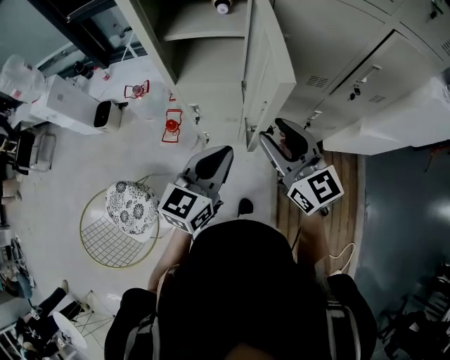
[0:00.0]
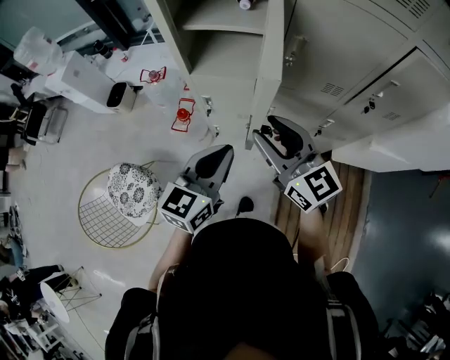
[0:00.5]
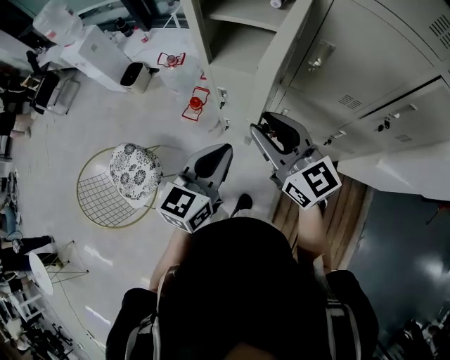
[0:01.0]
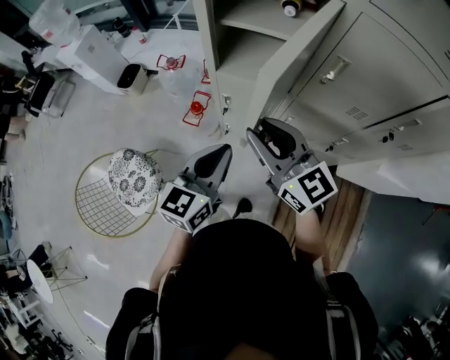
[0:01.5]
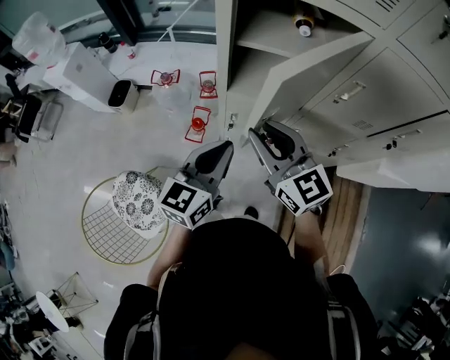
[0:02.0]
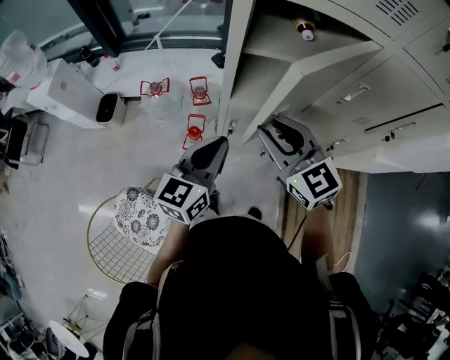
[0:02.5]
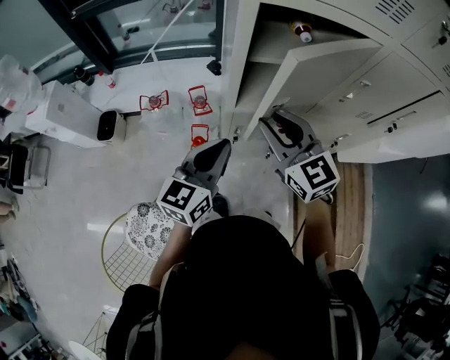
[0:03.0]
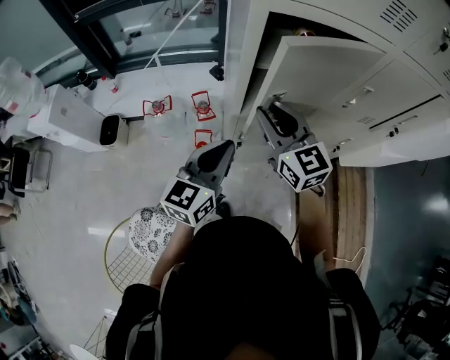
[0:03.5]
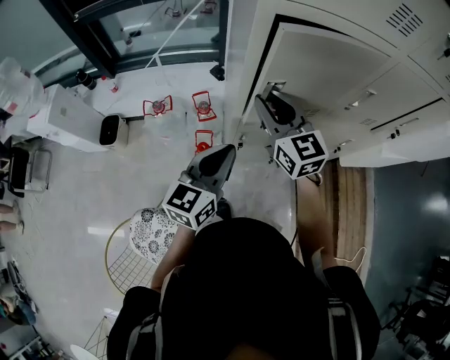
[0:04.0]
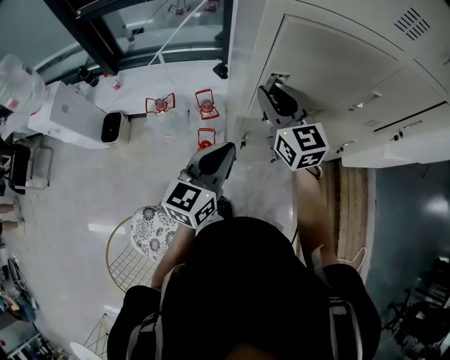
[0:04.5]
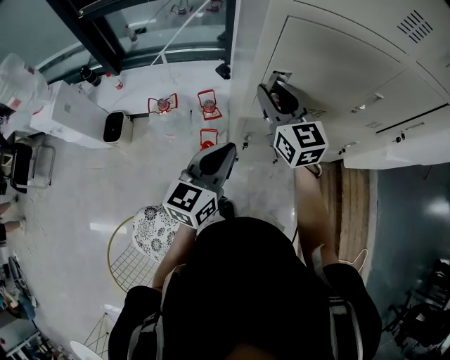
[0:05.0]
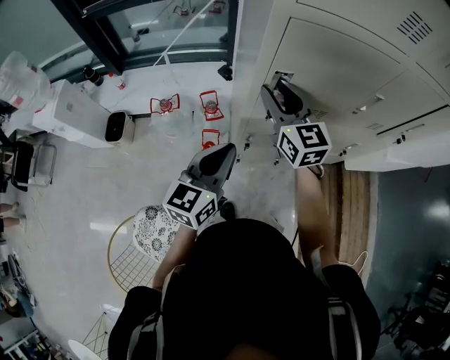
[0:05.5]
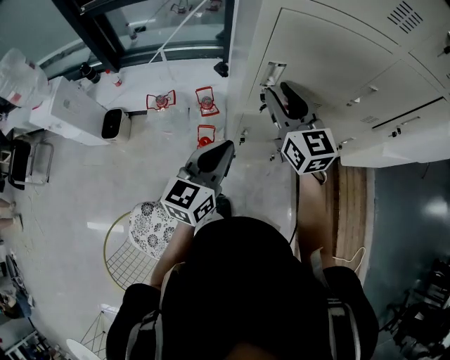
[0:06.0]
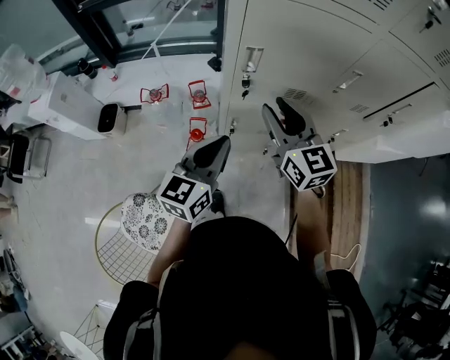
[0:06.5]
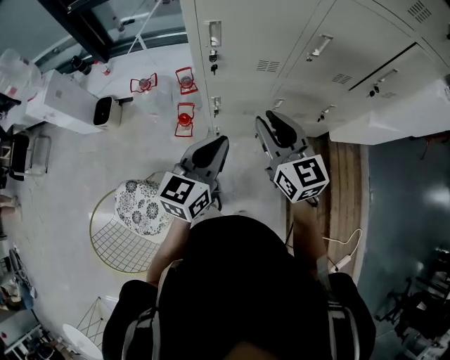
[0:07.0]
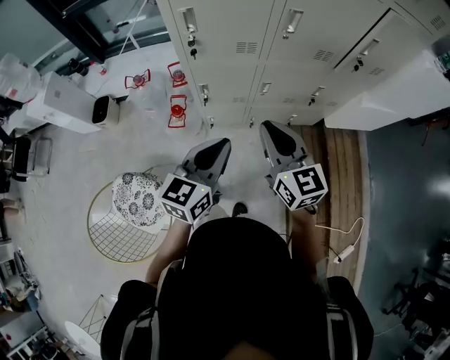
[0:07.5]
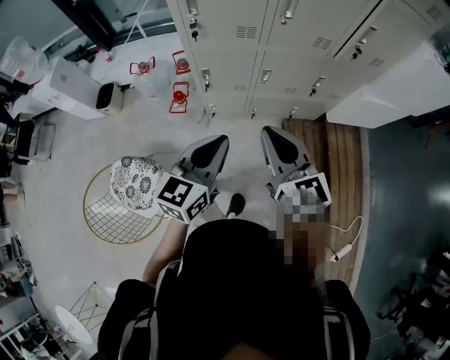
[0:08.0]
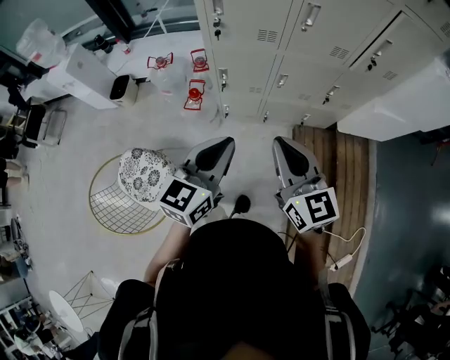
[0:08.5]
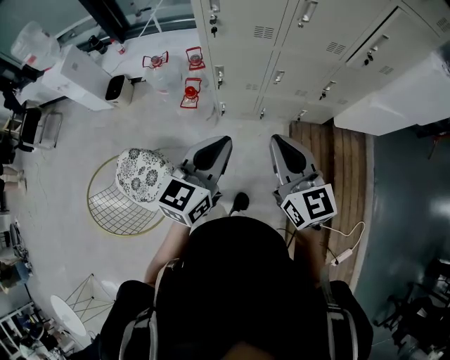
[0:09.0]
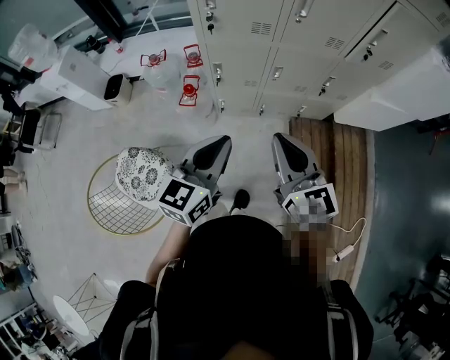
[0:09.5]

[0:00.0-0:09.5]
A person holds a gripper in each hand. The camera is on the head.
0:00.0 to 0:02.0: The grippers both shift to the left and forward by roughly 20 cm.
0:02.0 to 0:04.0: The left gripper shifts approximately 10 cm to the left and forward; the right gripper goes some 15 cm forward and to the left, and rotates some 20 degrees.
0:04.0 to 0:05.5: The grippers stay close to where they were, moving slightly.
0:05.5 to 0:07.5: The right gripper shifts some 35 cm backward and to the right, and closes. Meanwhile the left gripper travels to the right and backward by about 30 cm.
0:07.5 to 0:09.5: Both grippers travel together backward, some 10 cm.

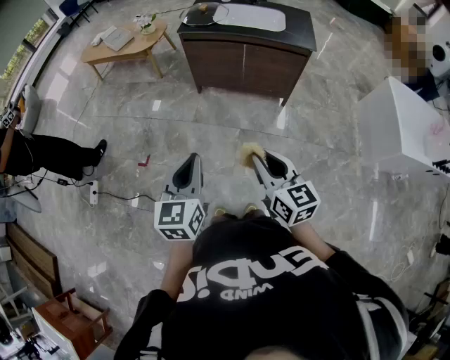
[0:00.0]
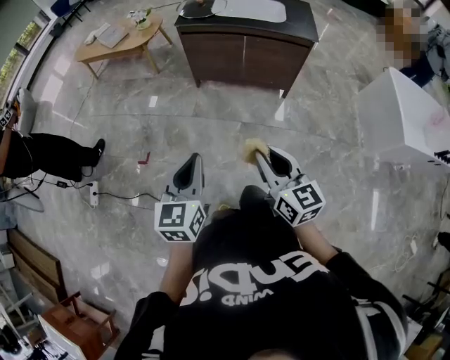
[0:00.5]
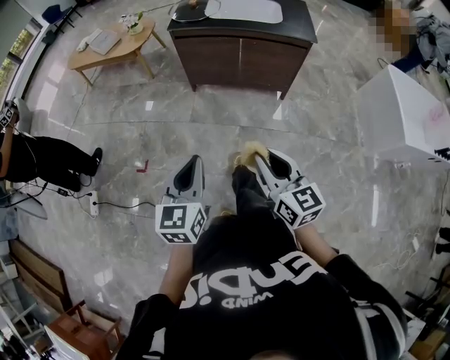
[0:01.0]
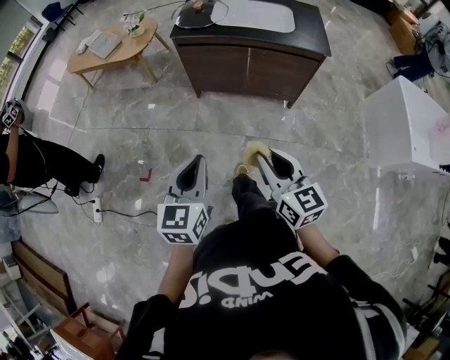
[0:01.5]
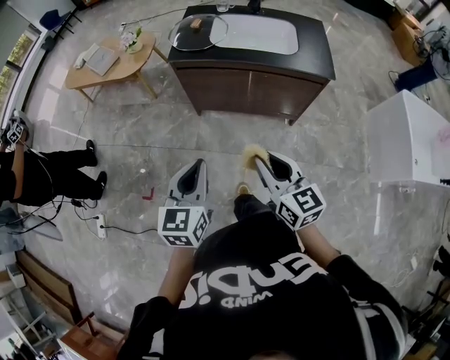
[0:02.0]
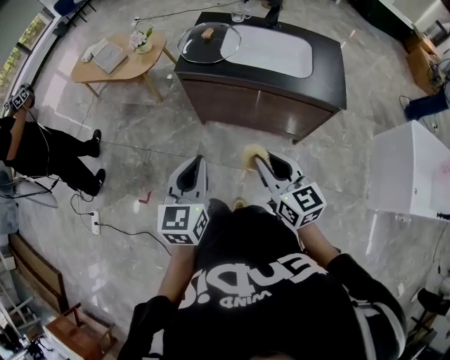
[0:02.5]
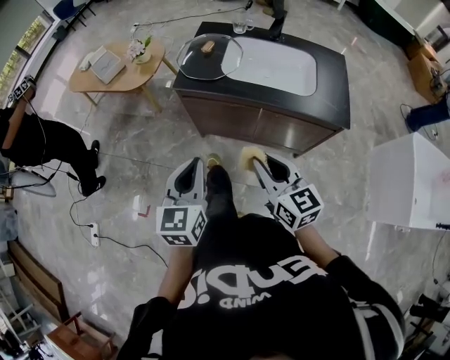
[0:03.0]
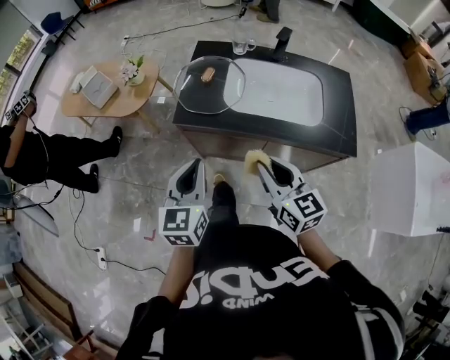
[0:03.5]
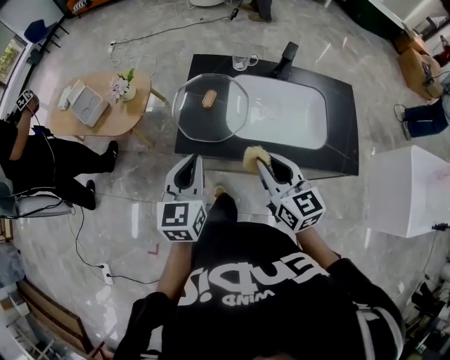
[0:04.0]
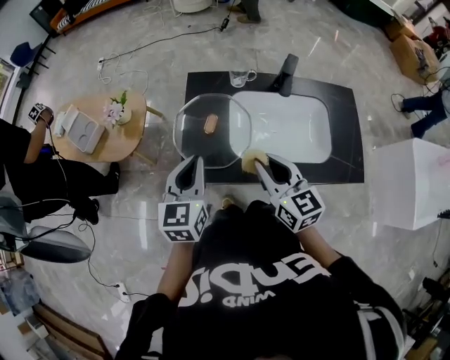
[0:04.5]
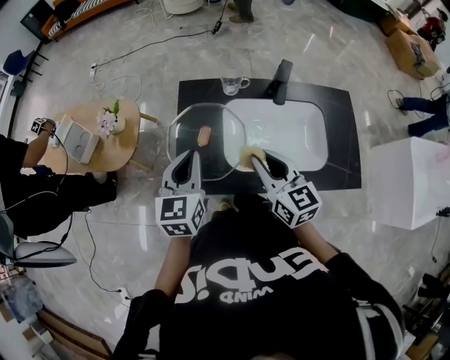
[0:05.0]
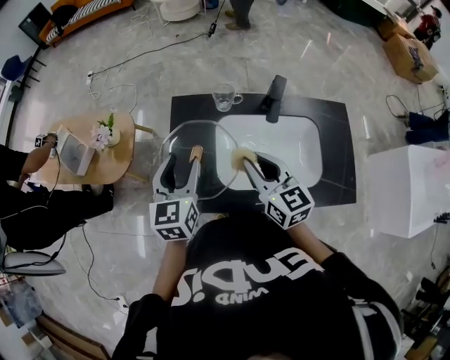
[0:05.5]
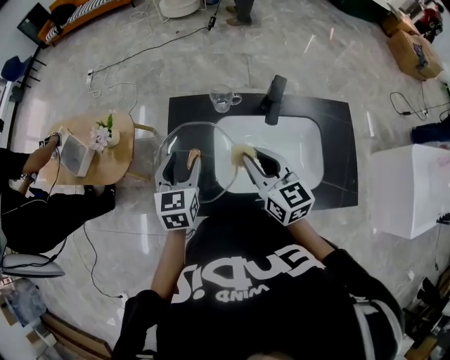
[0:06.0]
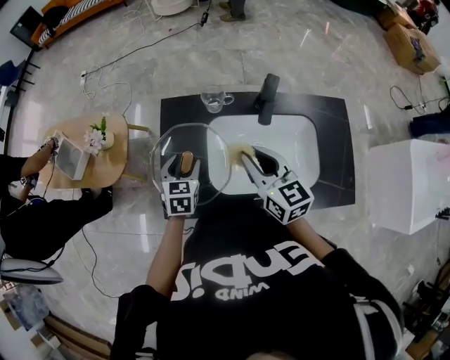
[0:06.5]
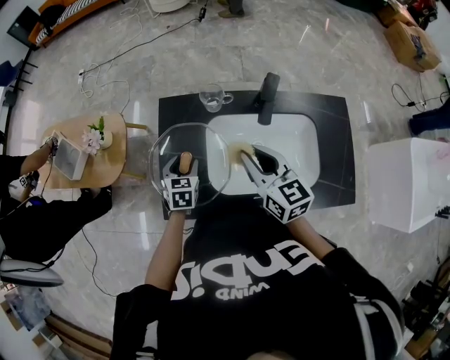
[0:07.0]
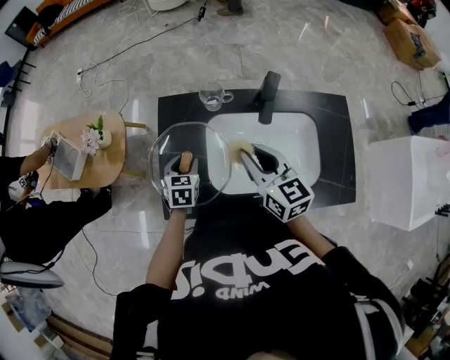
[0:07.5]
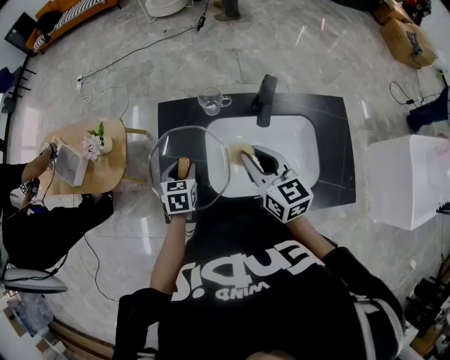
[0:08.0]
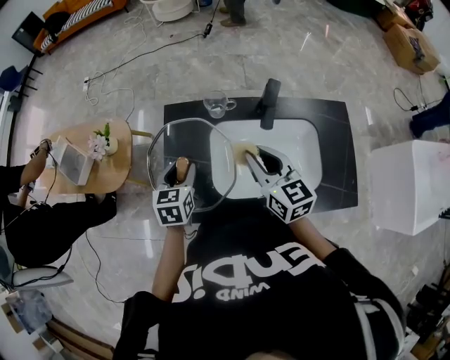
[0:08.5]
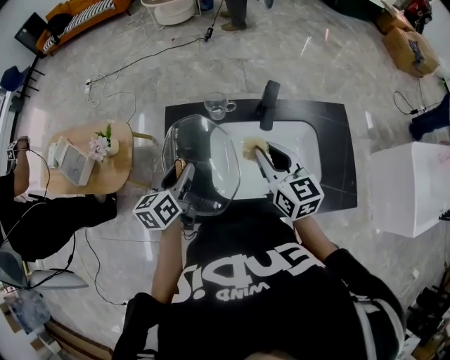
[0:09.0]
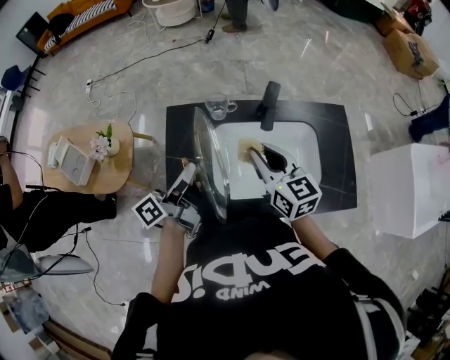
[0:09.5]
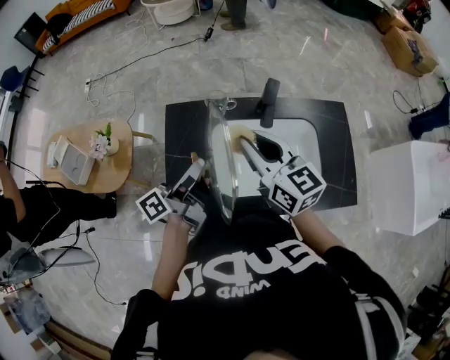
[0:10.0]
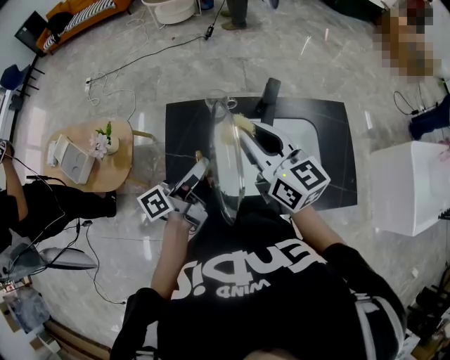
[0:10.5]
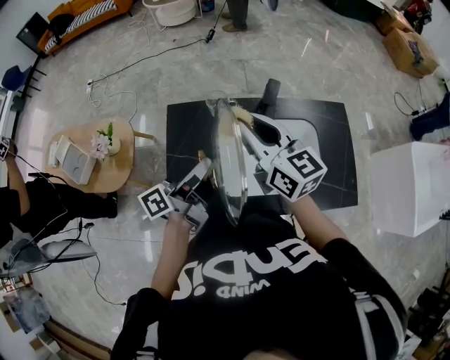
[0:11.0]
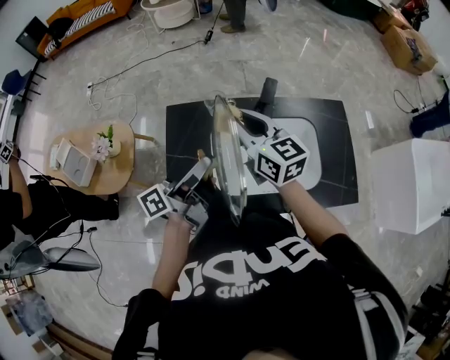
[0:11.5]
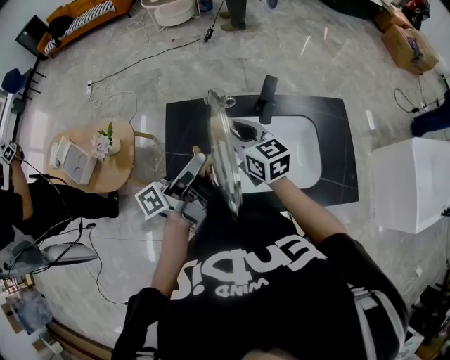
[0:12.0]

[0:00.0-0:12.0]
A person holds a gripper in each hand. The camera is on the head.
0:00.0 to 0:02.0: The grippers both shift forward by roughly 30 cm.
0:02.0 to 0:04.0: The two grippers travel together, forward, approximately 50 cm.
0:04.0 to 0:06.0: Both grippers travel together forward, some 25 cm. The left gripper opens its fingers.
0:06.0 to 0:08.0: The left gripper shifts roughly 15 cm downward.
0:08.0 to 0:10.0: The left gripper shifts about 20 cm upward, and tilts its fingers about 60 degrees upward; the right gripper travels upward by roughly 10 cm.
0:10.0 to 0:12.0: The right gripper shifts roughly 5 cm downward.

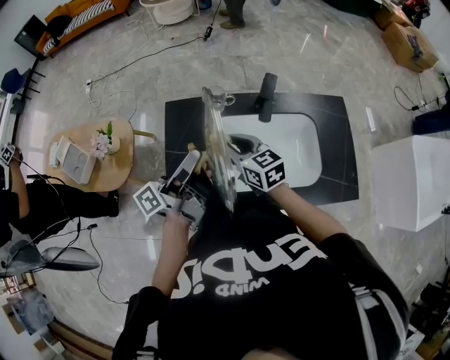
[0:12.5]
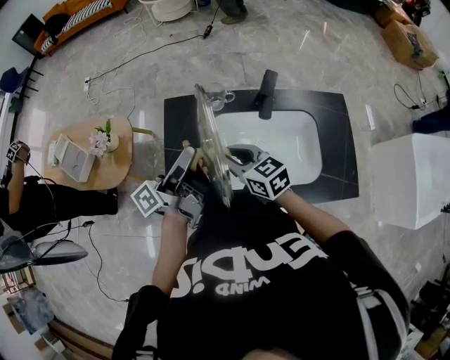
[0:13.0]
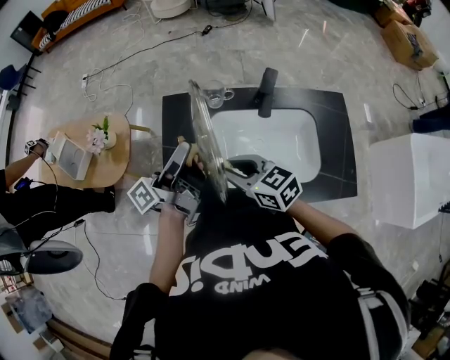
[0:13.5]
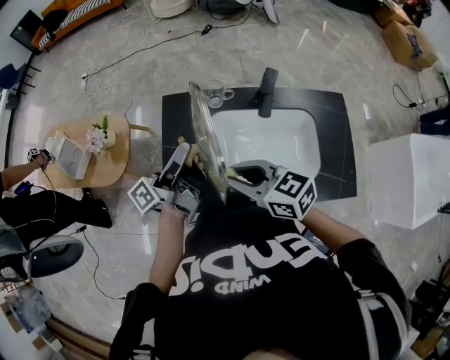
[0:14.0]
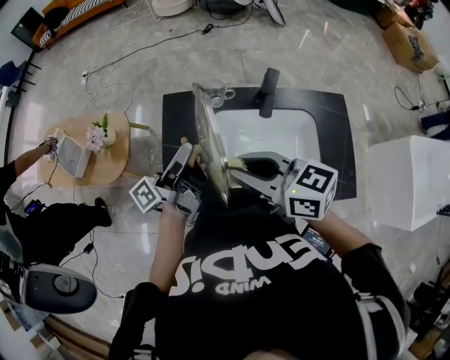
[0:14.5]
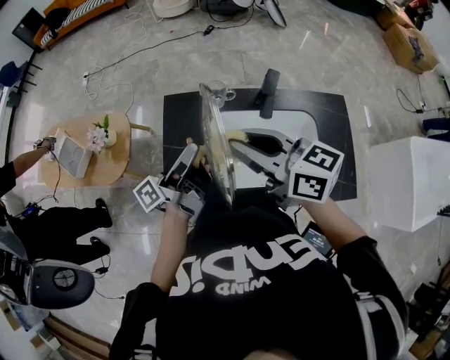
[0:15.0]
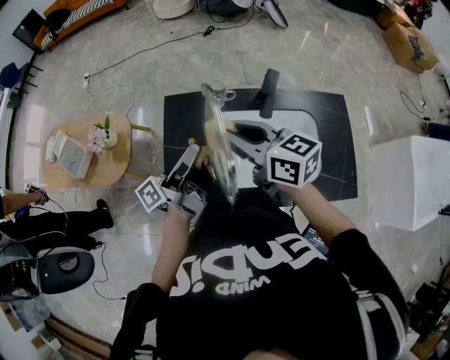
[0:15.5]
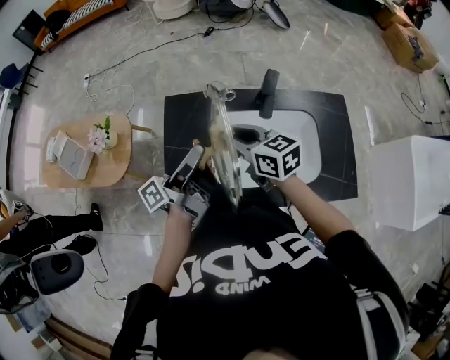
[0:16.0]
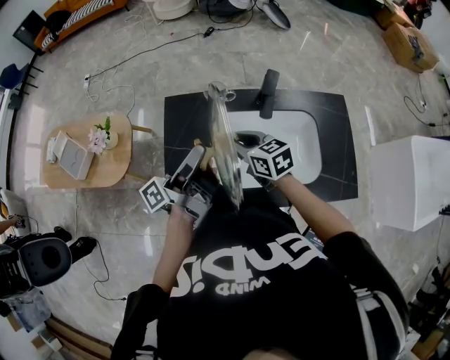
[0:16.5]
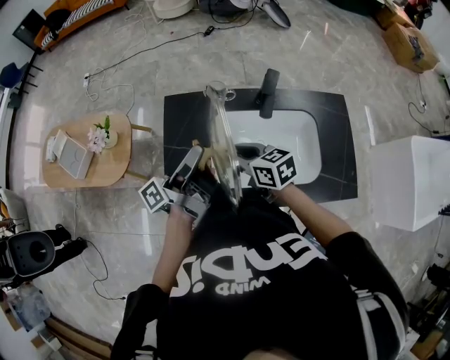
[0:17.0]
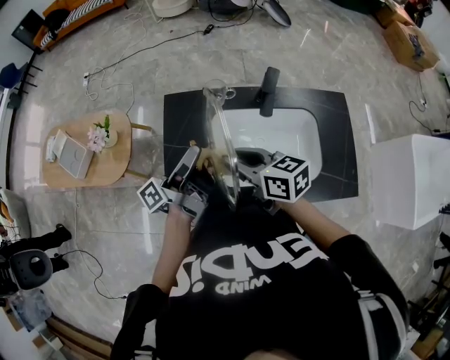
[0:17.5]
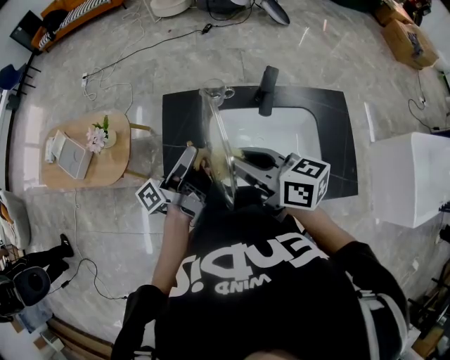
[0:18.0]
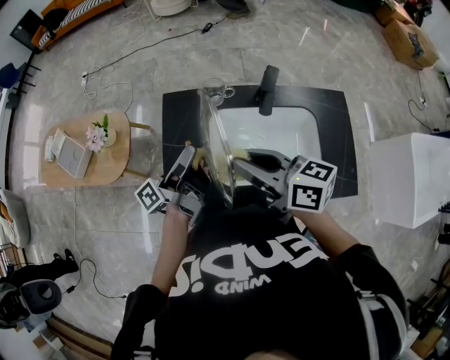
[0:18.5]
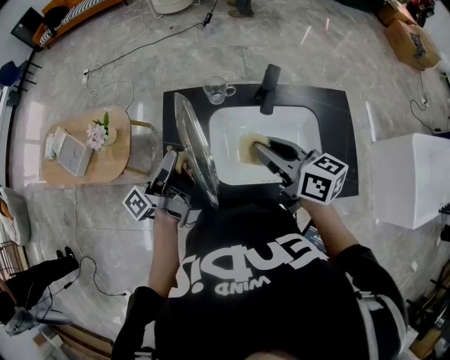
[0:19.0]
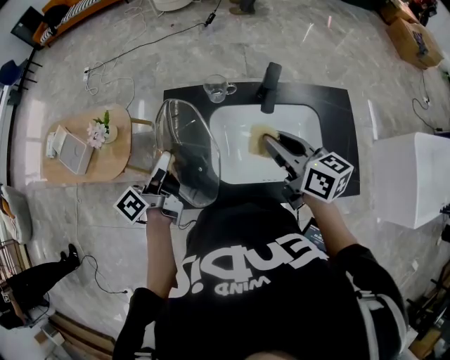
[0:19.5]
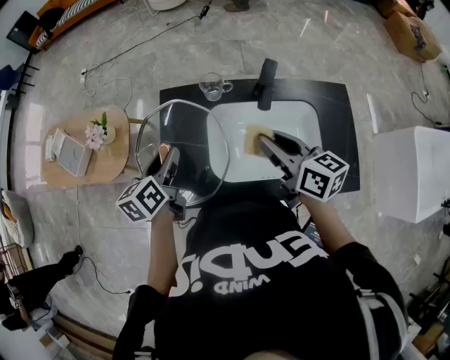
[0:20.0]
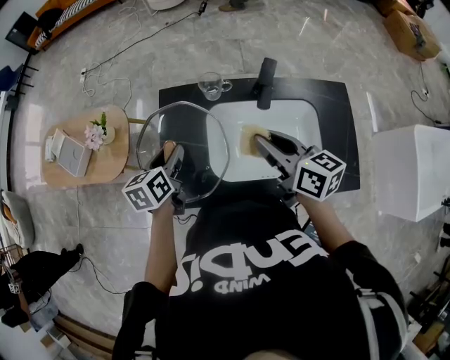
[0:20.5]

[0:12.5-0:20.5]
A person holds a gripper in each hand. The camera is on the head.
0:12.5 to 0:14.5: The right gripper shifts roughly 15 cm upward and backward, and changes its angle by roughly 20 degrees.
0:14.5 to 0:16.5: The right gripper is displaced downward and forward by about 20 cm, and rotates about 20 degrees.
0:16.5 to 0:18.5: The right gripper shifts roughly 15 cm upward and backward, and rotates some 30 degrees.
0:18.5 to 0:20.5: The right gripper travels to the right by about 5 cm. Meanwhile the left gripper moves downward and to the left, roughly 10 cm, and tips its fingers downward by about 50 degrees.
